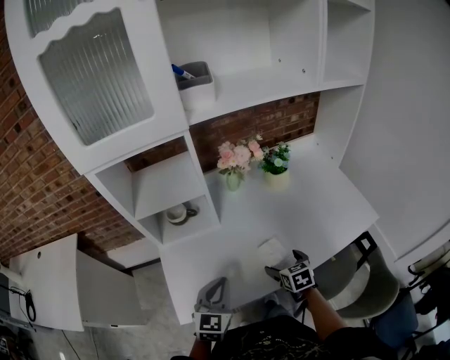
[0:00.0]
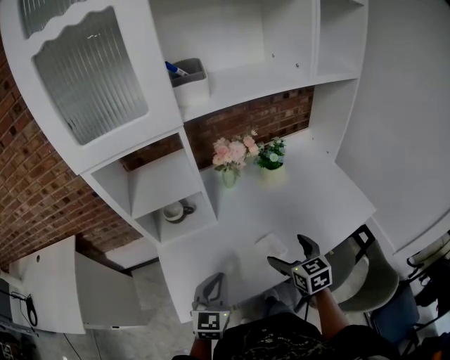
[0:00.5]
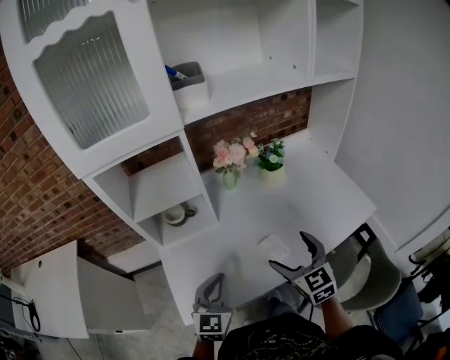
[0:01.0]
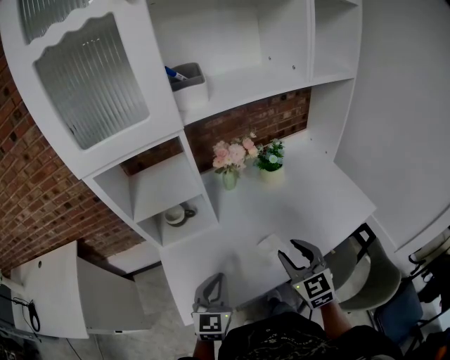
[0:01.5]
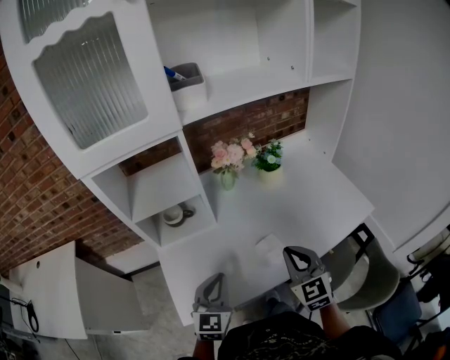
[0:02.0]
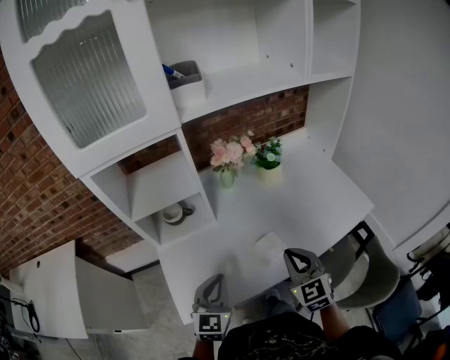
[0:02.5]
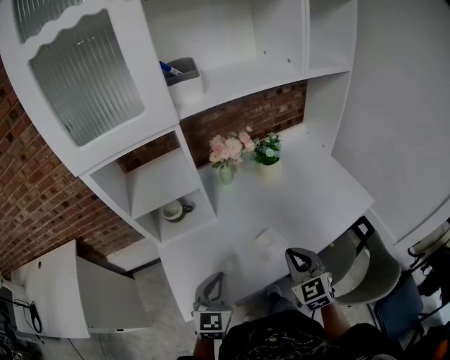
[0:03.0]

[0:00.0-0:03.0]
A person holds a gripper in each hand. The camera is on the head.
0:00.0 to 0:01.5: The right gripper travels upward by about 20 cm, turns by roughly 30 degrees, and closes up.
0:01.5 to 0:03.0: The grippers move only a little.

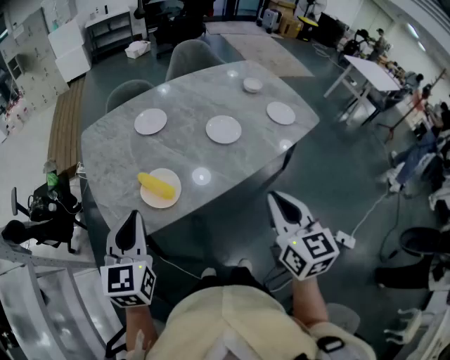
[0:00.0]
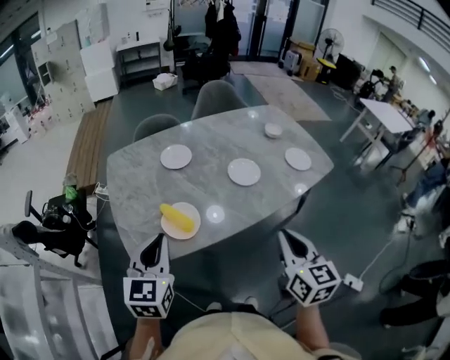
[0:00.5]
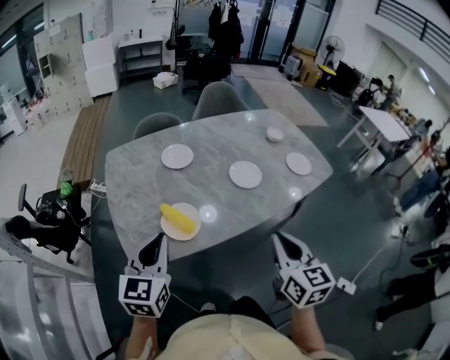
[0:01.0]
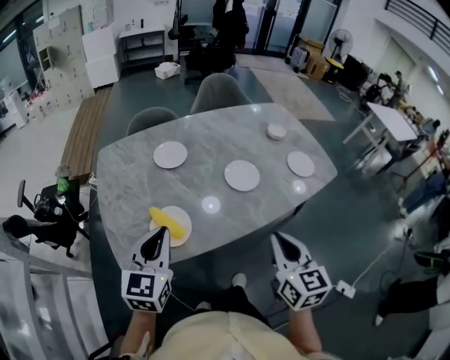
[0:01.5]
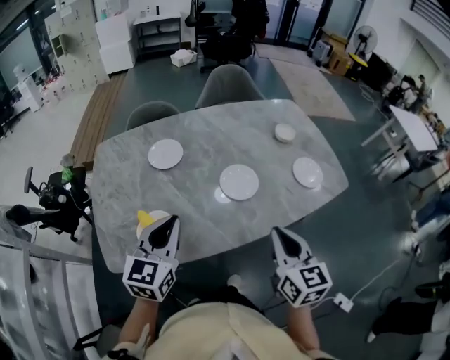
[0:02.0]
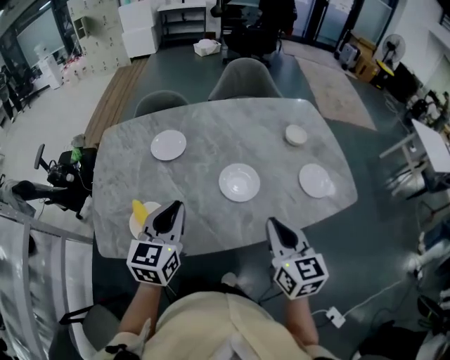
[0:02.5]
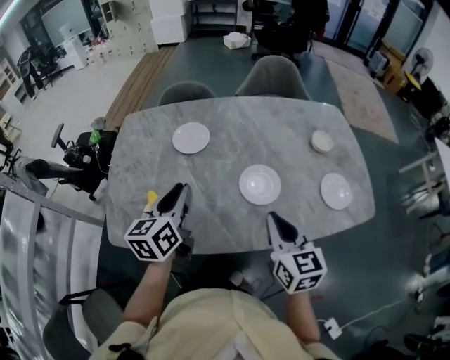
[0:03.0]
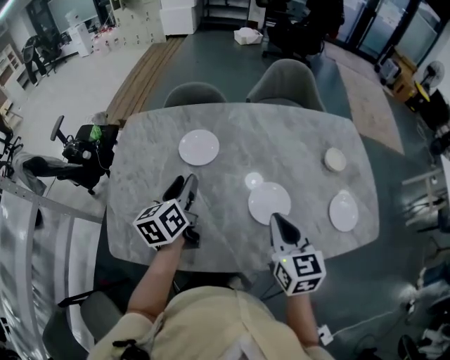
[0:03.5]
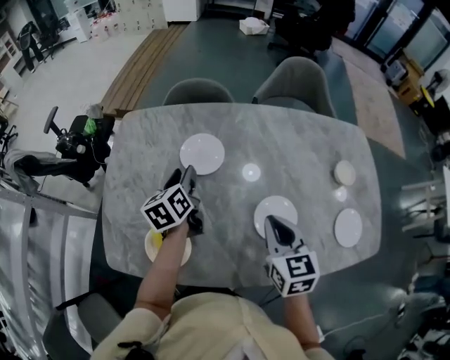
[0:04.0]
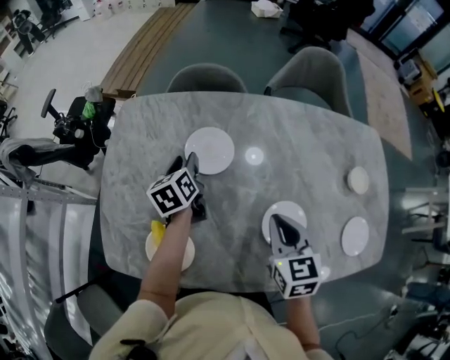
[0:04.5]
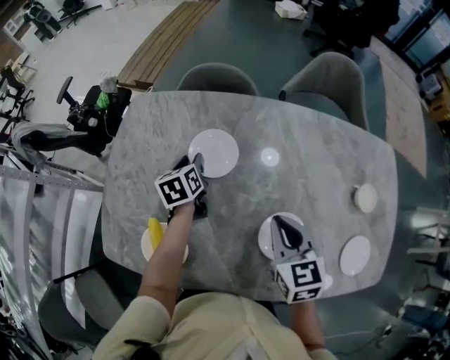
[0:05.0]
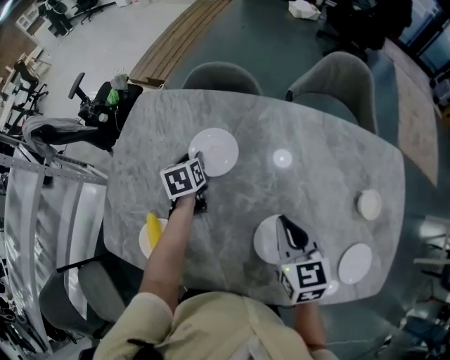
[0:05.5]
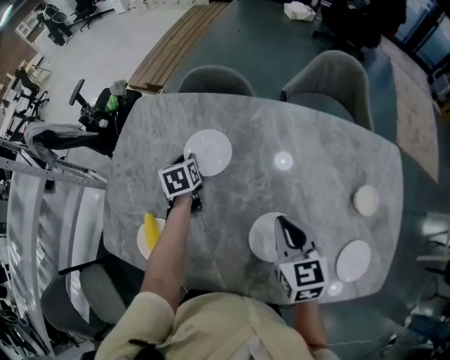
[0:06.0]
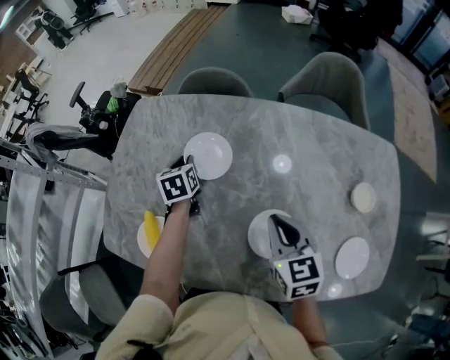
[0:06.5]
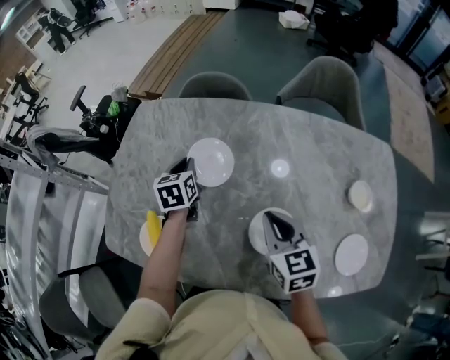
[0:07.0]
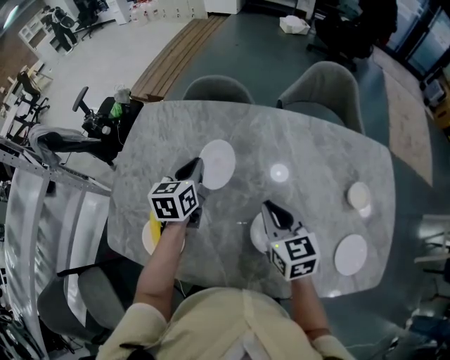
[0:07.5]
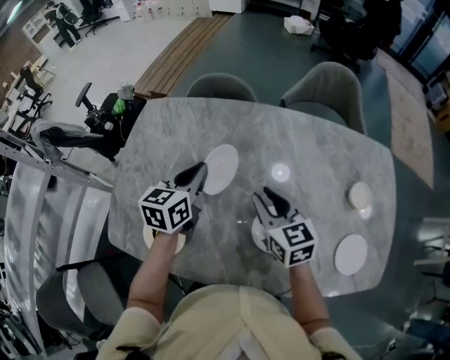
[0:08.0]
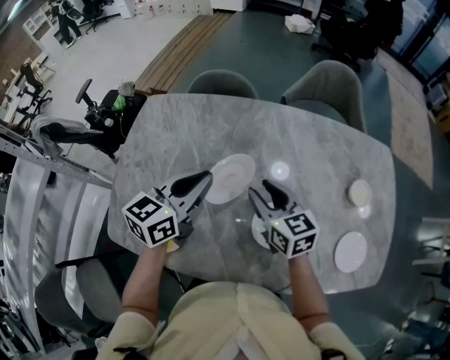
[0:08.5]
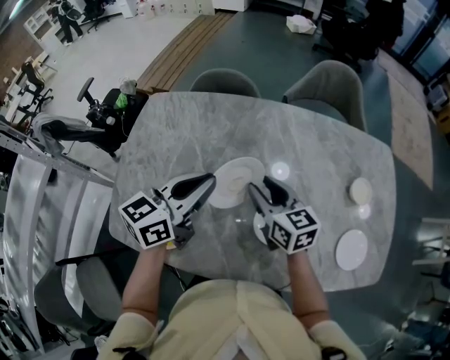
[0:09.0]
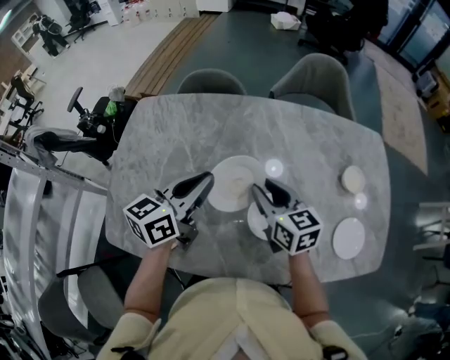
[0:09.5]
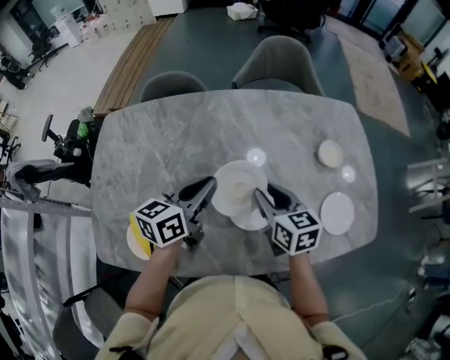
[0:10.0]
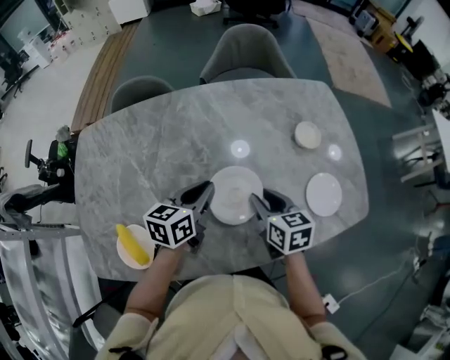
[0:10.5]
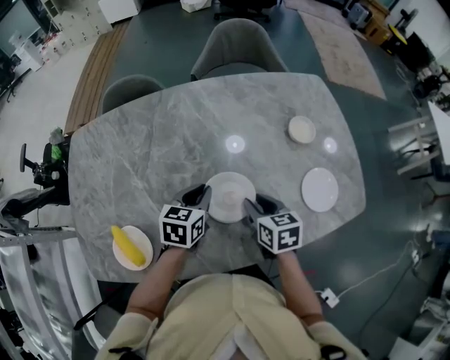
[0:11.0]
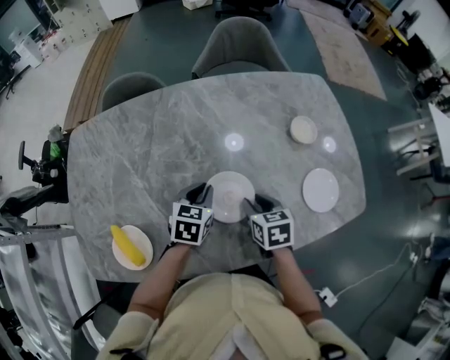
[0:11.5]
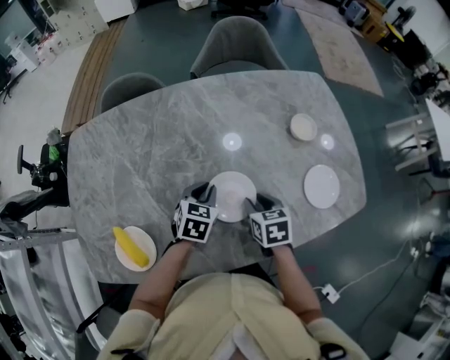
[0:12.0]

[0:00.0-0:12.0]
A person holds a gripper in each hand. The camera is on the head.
0:00.0 to 0:02.0: The two grippers go some 20 cm forward and to the right.
0:02.0 to 0:04.0: The left gripper heads forward and downward, covering about 30 cm, rolls counterclockwise, seen from behind, by some 40 degrees, and opens up, while the right gripper is displaced forward by some 25 cm, and rotates about 30 degrees.
0:04.0 to 0:06.0: The right gripper is displaced forward and to the right by approximately 10 cm, while the left gripper goes some 10 cm downward and forward, and swivels roughly 30 degrees.
0:06.0 to 0:08.0: The right gripper goes roughly 5 cm to the left. Meanwhile the left gripper shifts roughly 15 cm upward and backward, swivels some 40 degrees, and closes.
0:08.0 to 0:10.0: The right gripper heads to the right, covering roughly 10 cm, and swivels roughly 20 degrees. The left gripper shifts roughly 15 cm to the right and backward, and turns by some 30 degrees.
0:10.0 to 0:12.0: The right gripper heads downward, to the right and backward, covering about 15 cm, and swivels roughly 30 degrees. Meanwhile the left gripper travels downward and to the right by about 15 cm, and tilts its fingers about 30 degrees downward.

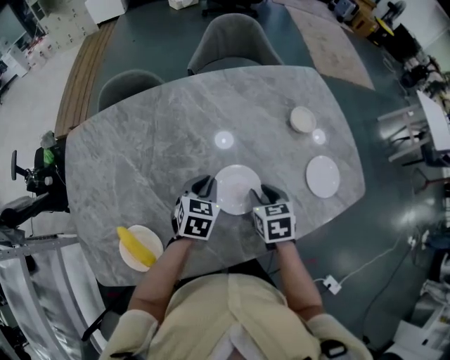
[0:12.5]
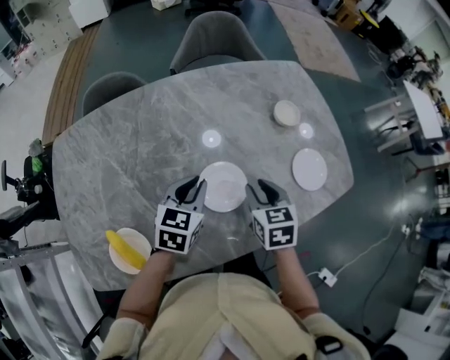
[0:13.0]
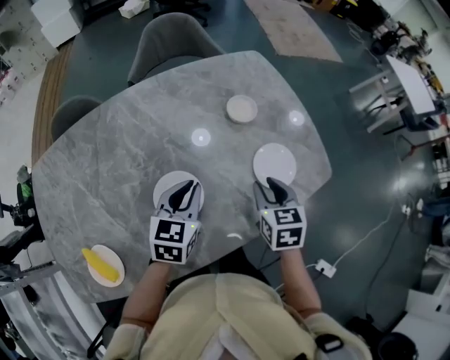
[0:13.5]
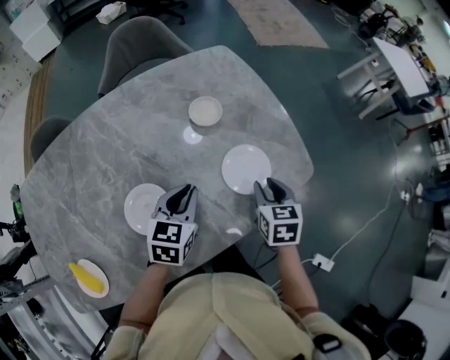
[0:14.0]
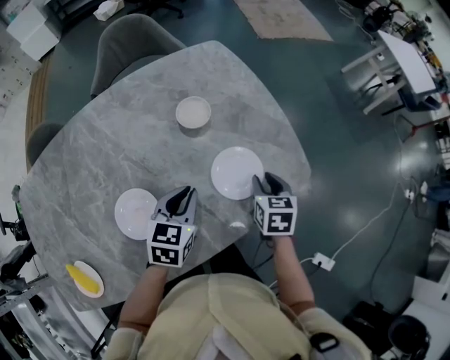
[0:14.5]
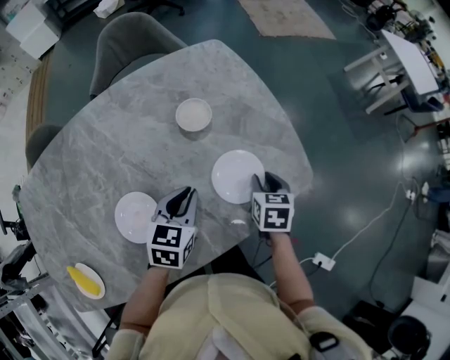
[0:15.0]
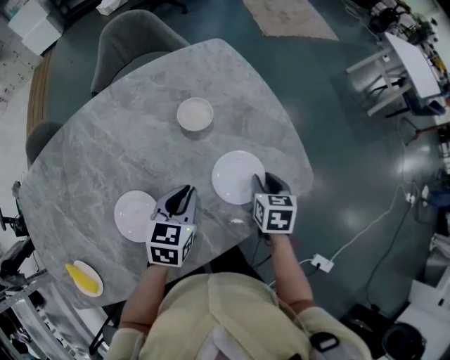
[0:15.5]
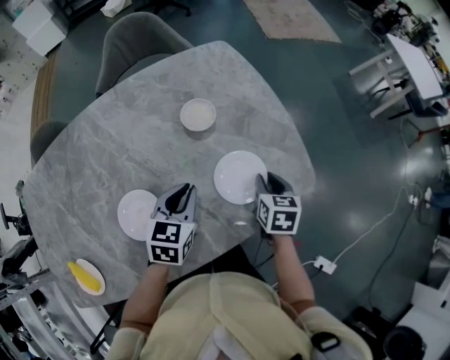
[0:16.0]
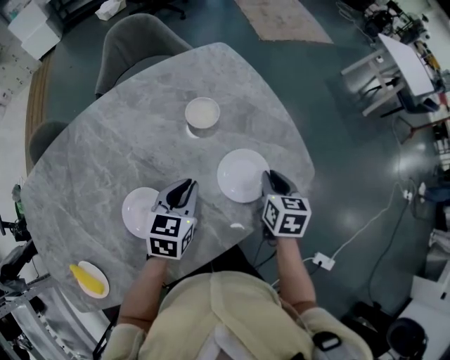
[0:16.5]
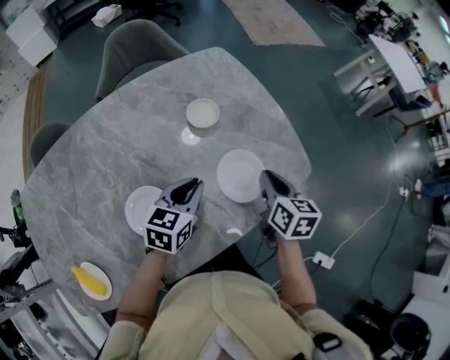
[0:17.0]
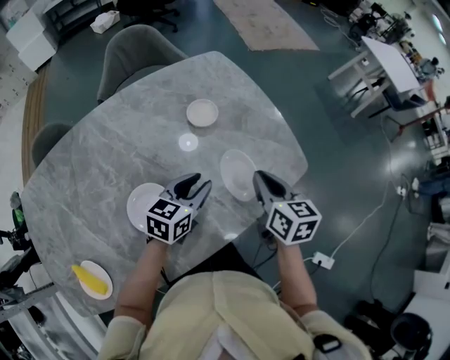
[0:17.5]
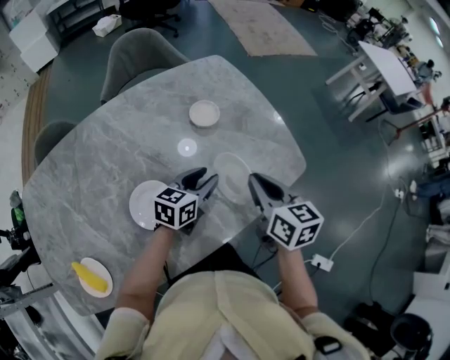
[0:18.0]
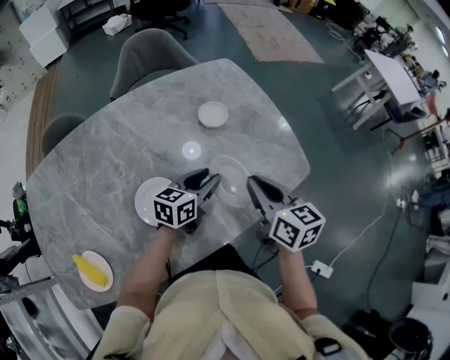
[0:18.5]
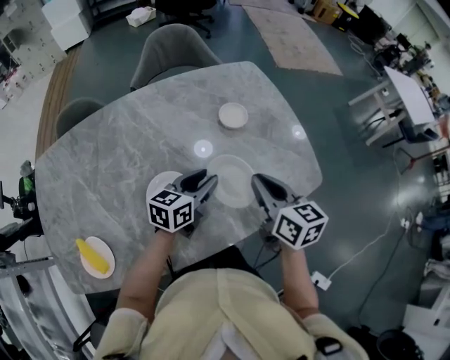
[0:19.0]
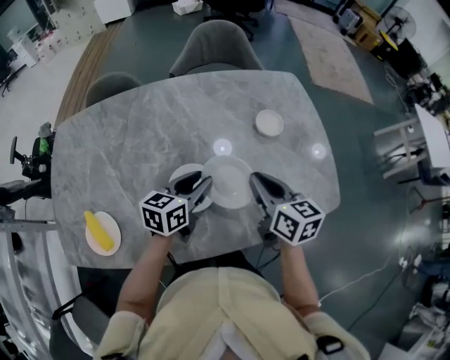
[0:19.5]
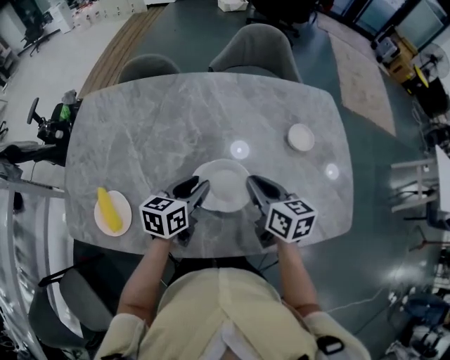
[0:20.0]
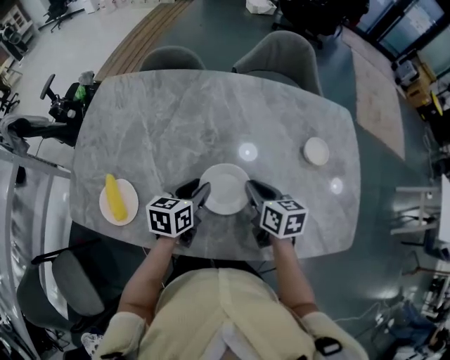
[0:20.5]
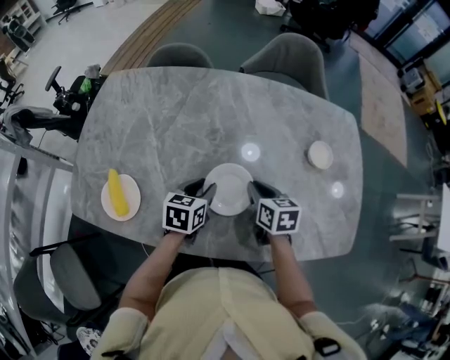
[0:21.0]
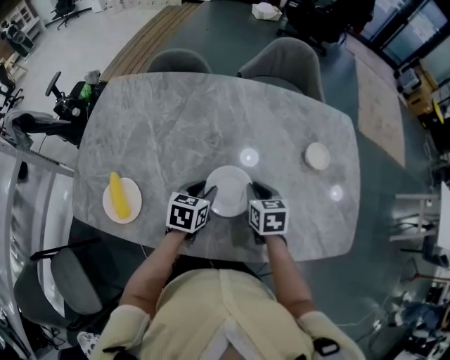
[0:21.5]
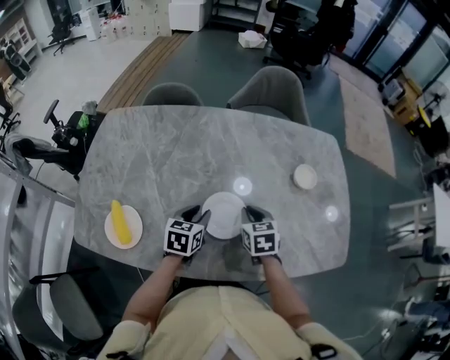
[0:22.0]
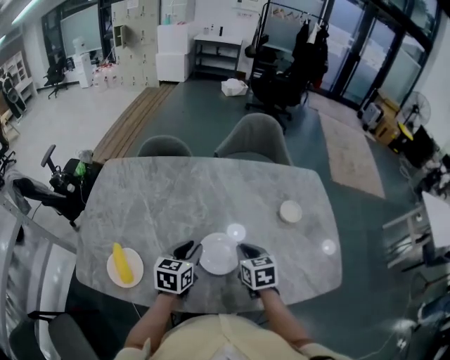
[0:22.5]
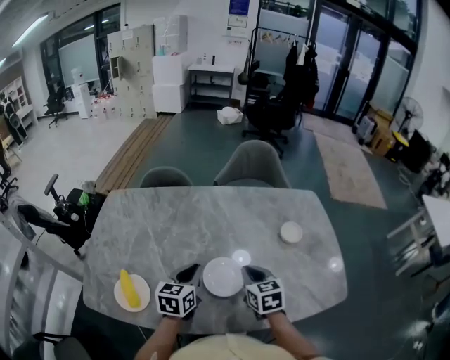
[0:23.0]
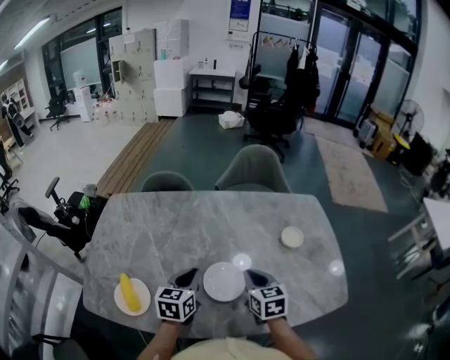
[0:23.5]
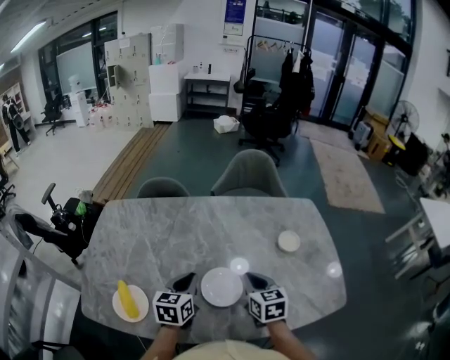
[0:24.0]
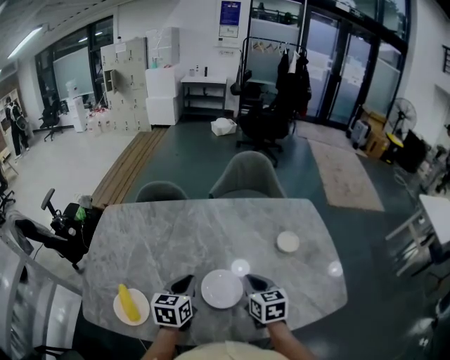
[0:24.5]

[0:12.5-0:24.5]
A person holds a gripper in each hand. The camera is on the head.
0:12.5 to 0:14.5: Both grippers travel together to the right, approximately 30 cm. The right gripper rotates about 20 degrees.
0:14.5 to 0:16.5: The grippers move only a little.
0:16.5 to 0:18.5: The left gripper swivels some 30 degrees, and opens its fingers; the right gripper is displaced upward, backward and to the left by approximately 20 cm, and turns by some 30 degrees.
0:18.5 to 0:20.5: The left gripper shifts by approximately 25 cm, and changes its angle by about 50 degrees. Meanwhile the right gripper moves approximately 25 cm, and rotates some 40 degrees.
0:20.5 to 0:22.5: The right gripper changes its angle by approximately 20 degrees.
0:22.5 to 0:24.5: The right gripper is displaced upward by roughly 5 cm; the left gripper closes.
